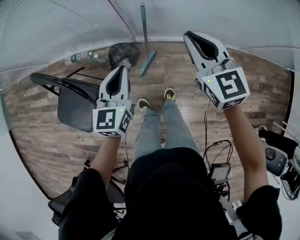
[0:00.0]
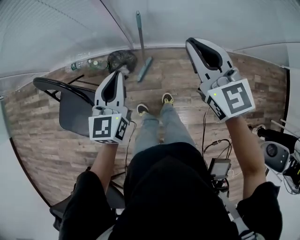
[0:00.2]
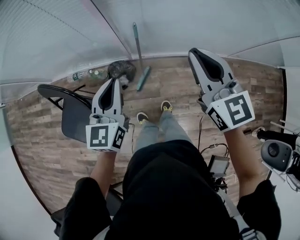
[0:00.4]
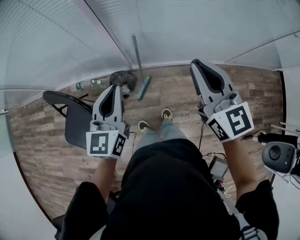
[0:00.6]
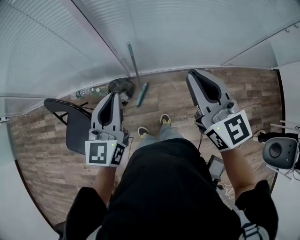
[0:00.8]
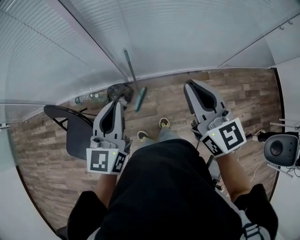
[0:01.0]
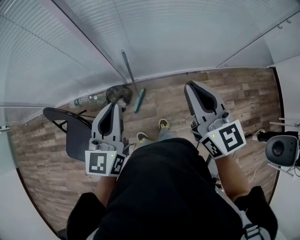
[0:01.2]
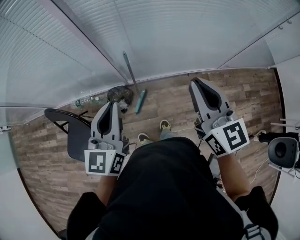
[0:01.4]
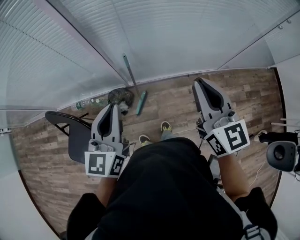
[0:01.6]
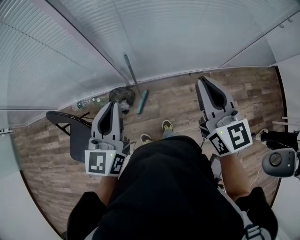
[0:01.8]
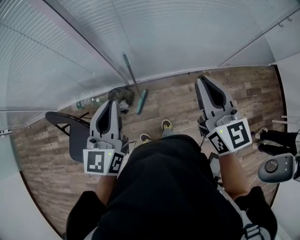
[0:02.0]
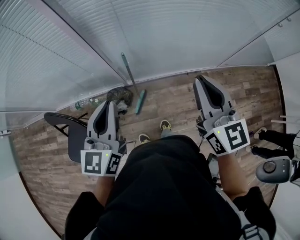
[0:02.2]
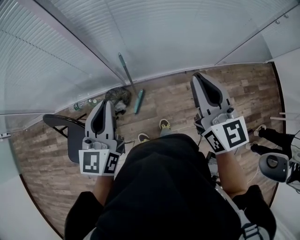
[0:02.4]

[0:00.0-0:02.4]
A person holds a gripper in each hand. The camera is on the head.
0:00.0 to 0:01.2: The left gripper travels upward by some 20 cm. Meanwhile the right gripper shifts approximately 25 cm upward, backward and to the right, and rotates roughly 20 degrees.
0:01.2 to 0:02.4: The grippers move only a little.

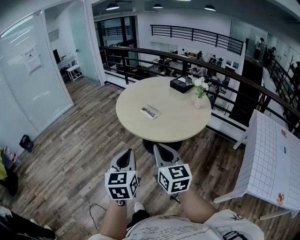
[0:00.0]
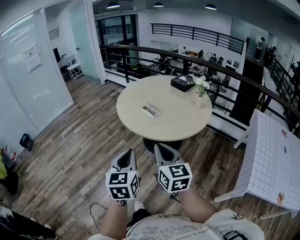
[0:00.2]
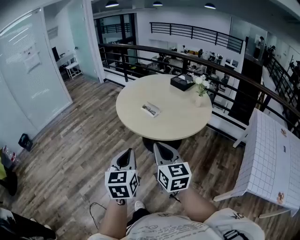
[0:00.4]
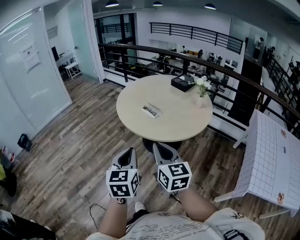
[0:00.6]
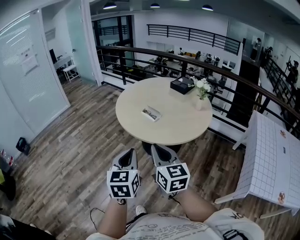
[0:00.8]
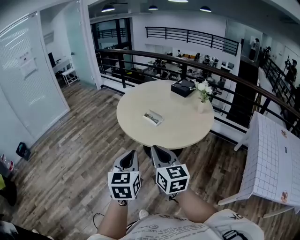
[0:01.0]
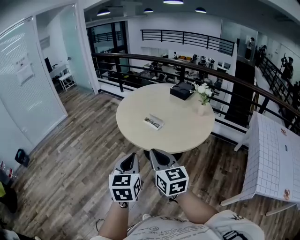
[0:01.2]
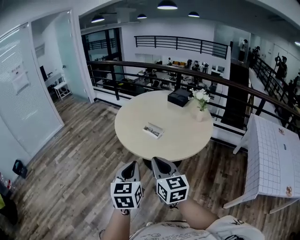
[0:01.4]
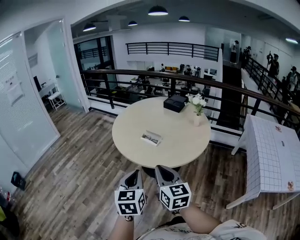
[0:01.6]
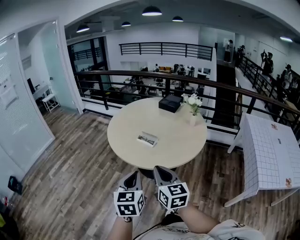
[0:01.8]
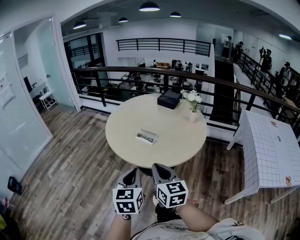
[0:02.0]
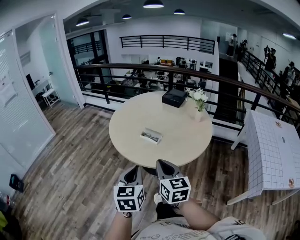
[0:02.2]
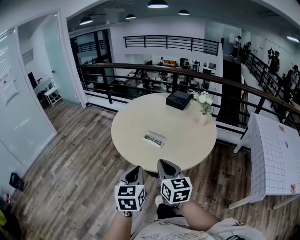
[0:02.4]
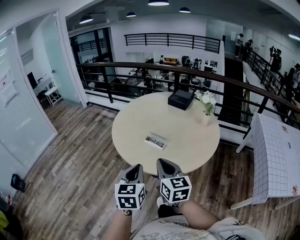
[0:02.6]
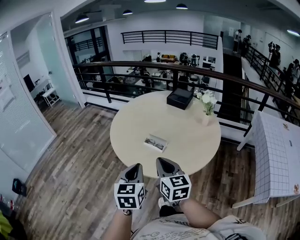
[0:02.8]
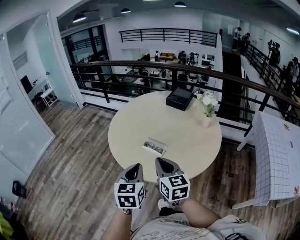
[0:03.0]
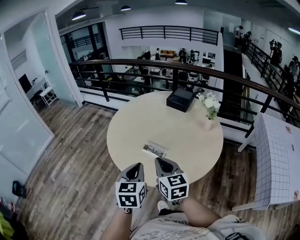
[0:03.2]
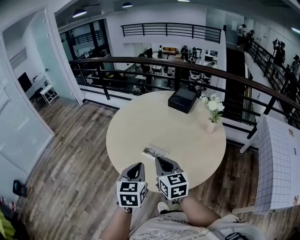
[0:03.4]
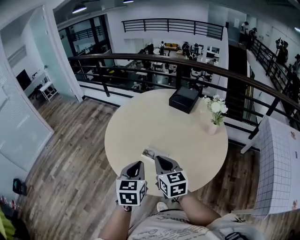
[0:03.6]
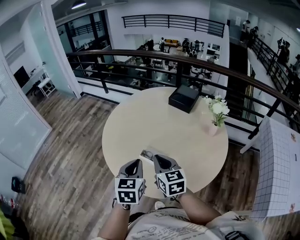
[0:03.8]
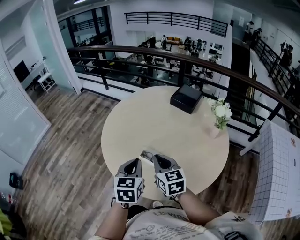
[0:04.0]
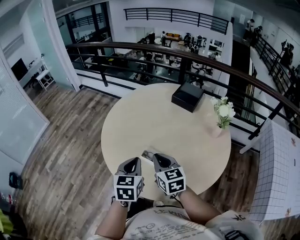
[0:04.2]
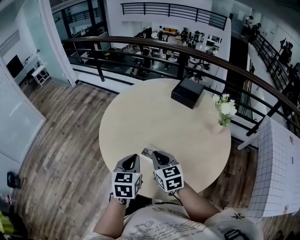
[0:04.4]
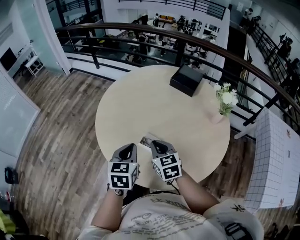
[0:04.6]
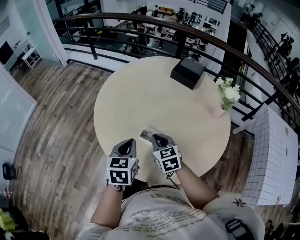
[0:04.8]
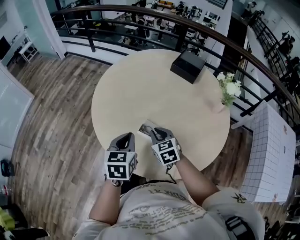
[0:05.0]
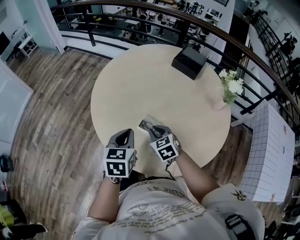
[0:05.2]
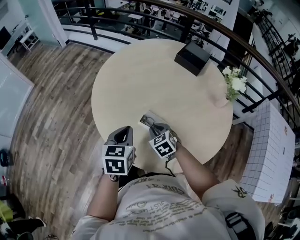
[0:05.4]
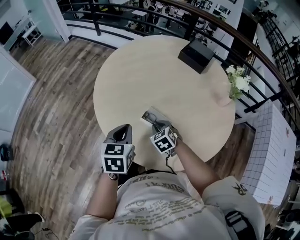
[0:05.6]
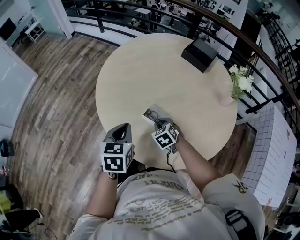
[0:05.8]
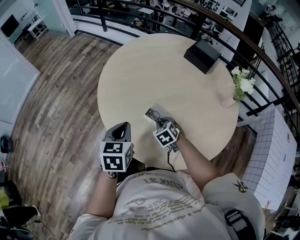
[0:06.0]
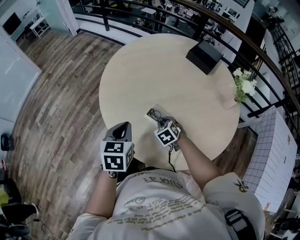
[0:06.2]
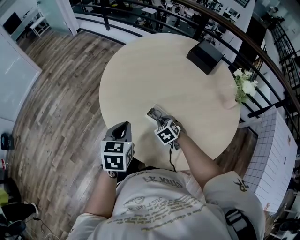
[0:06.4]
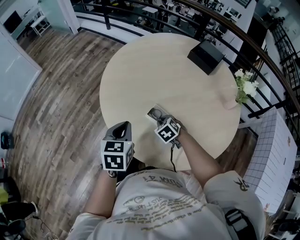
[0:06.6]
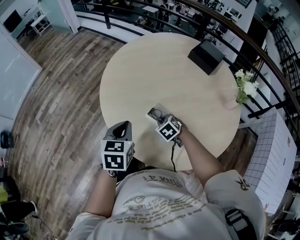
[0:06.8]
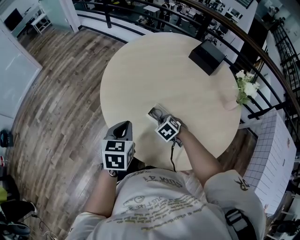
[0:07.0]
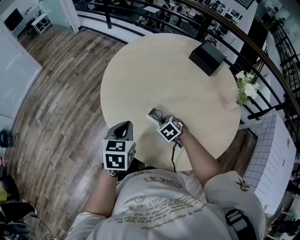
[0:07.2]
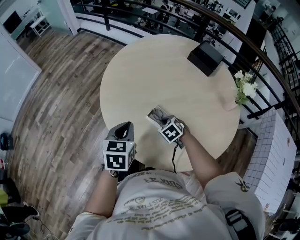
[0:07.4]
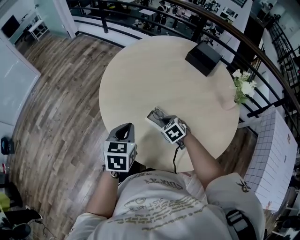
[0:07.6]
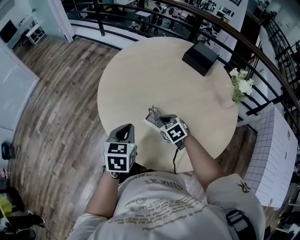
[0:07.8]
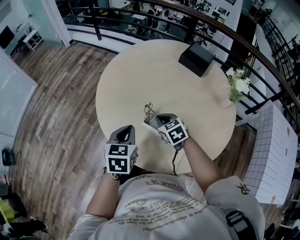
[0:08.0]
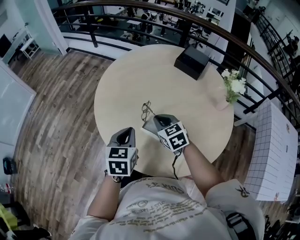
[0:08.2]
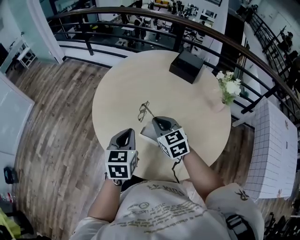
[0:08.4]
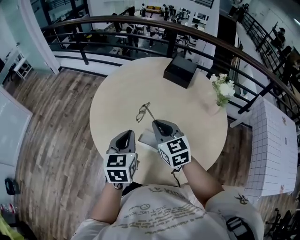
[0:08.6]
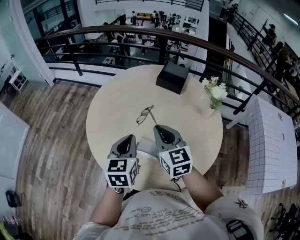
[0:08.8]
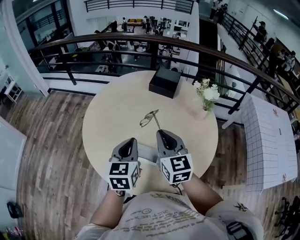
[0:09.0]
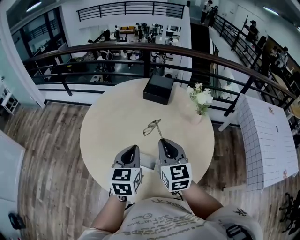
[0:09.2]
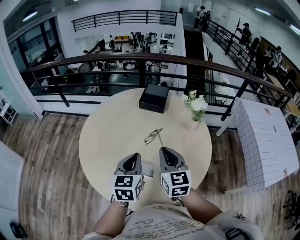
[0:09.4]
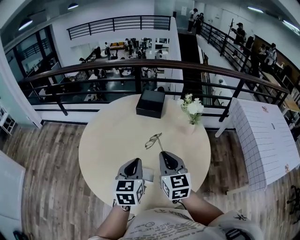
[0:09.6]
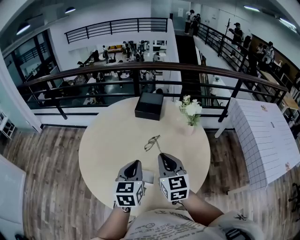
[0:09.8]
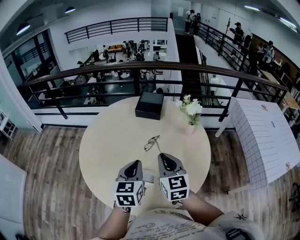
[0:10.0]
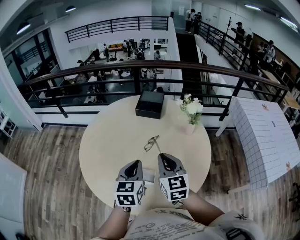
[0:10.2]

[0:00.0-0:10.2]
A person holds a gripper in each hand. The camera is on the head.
0:00.0 to 0:01.4: The left gripper moves forward, approximately 15 cm; the right gripper heads forward and to the left, covering some 15 cm.
0:01.4 to 0:03.0: Both grippers travel together forward, some 20 cm.
0:03.0 to 0:04.4: The right gripper is displaced forward and downward by approximately 25 cm; the left gripper goes about 20 cm forward.
0:04.4 to 0:05.8: The left gripper travels downward by roughly 5 cm; the right gripper moves downward, roughly 20 cm, and tips its fingers downward by roughly 30 degrees.
0:05.8 to 0:07.2: The grippers make only small movements.
0:07.2 to 0:08.8: The left gripper moves upward, to the right and forward, approximately 15 cm, and swivels approximately 20 degrees. The right gripper heads upward, covering roughly 30 cm, and tilts its fingers about 50 degrees upward.
0:08.8 to 0:10.2: The two grippers go some 10 cm to the right.

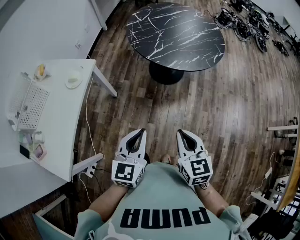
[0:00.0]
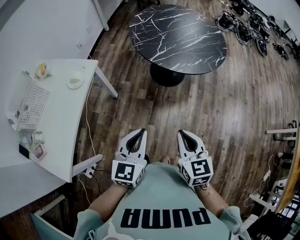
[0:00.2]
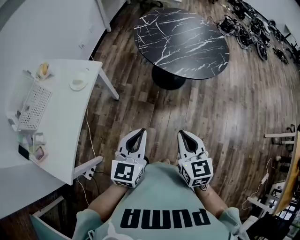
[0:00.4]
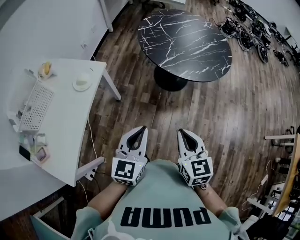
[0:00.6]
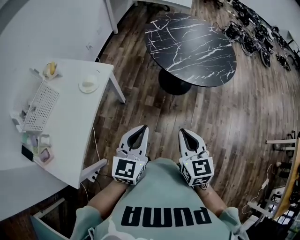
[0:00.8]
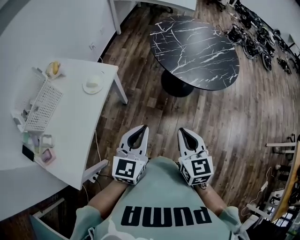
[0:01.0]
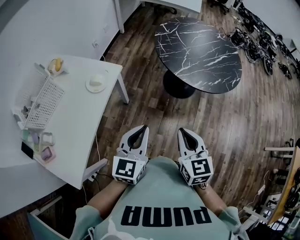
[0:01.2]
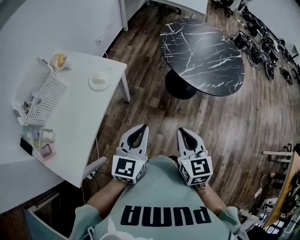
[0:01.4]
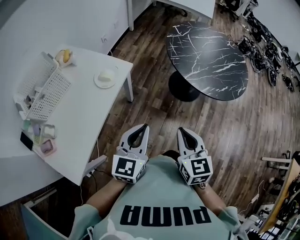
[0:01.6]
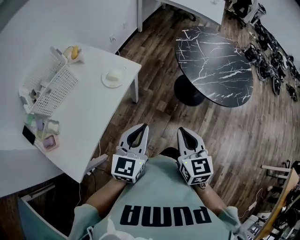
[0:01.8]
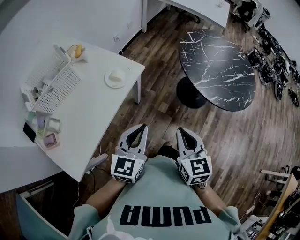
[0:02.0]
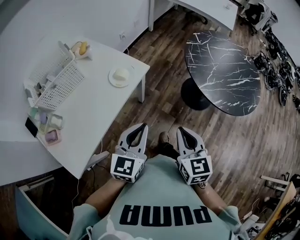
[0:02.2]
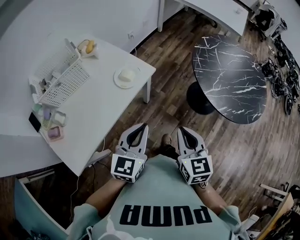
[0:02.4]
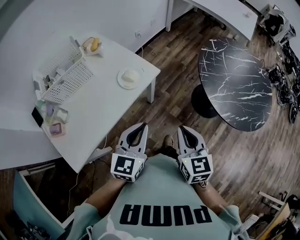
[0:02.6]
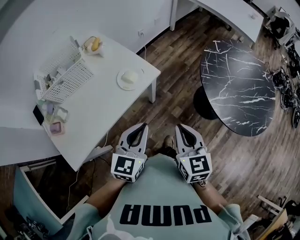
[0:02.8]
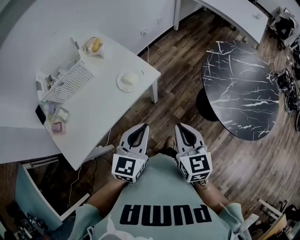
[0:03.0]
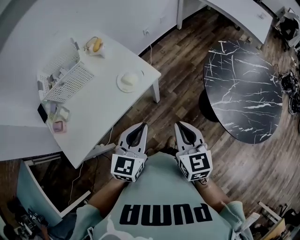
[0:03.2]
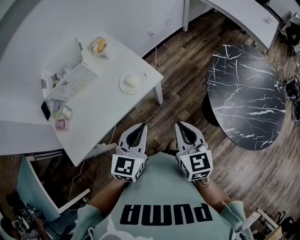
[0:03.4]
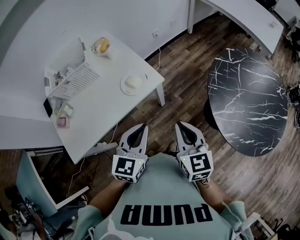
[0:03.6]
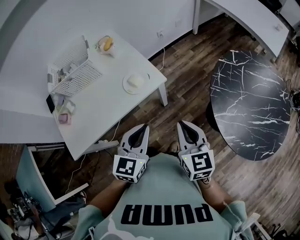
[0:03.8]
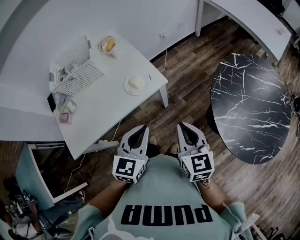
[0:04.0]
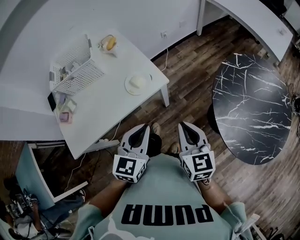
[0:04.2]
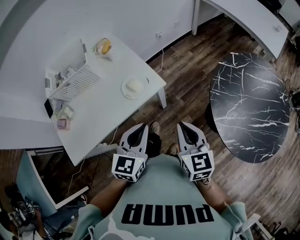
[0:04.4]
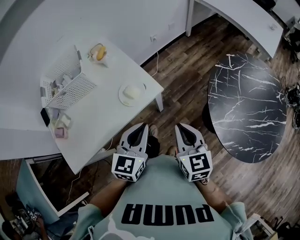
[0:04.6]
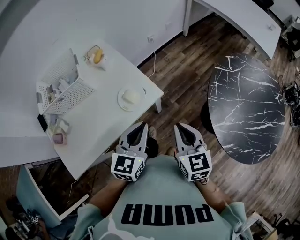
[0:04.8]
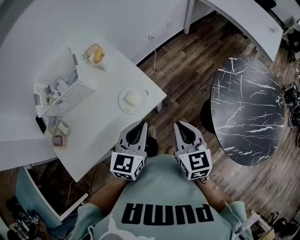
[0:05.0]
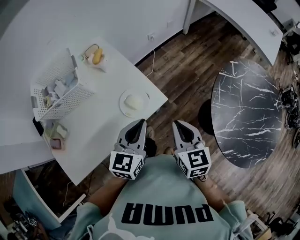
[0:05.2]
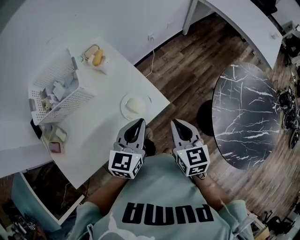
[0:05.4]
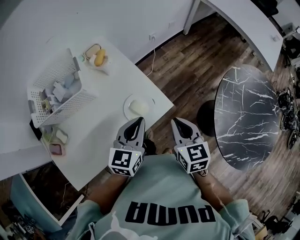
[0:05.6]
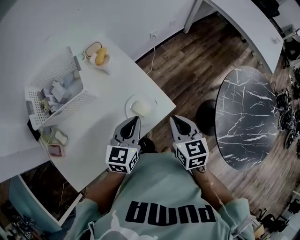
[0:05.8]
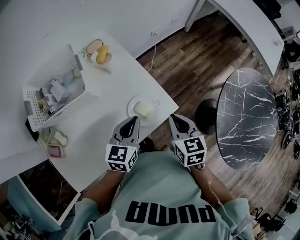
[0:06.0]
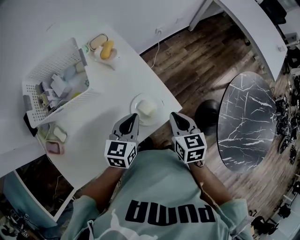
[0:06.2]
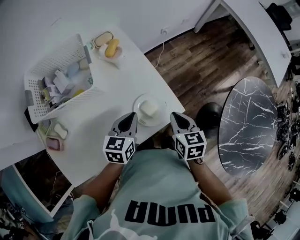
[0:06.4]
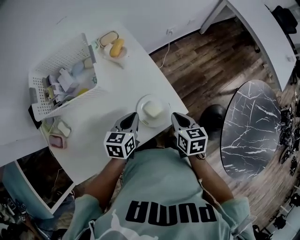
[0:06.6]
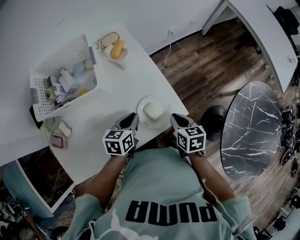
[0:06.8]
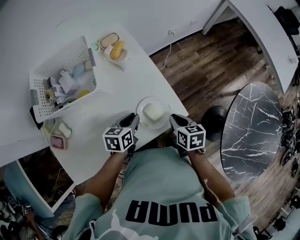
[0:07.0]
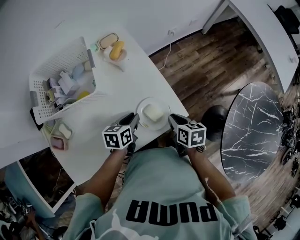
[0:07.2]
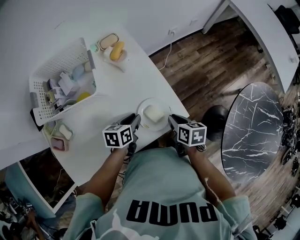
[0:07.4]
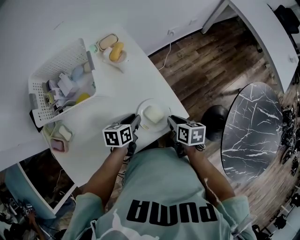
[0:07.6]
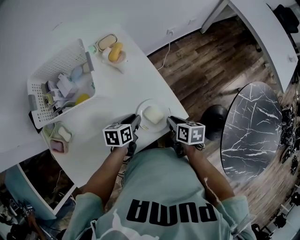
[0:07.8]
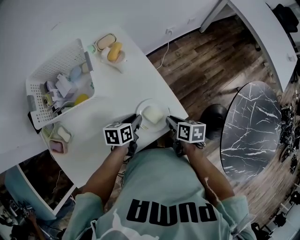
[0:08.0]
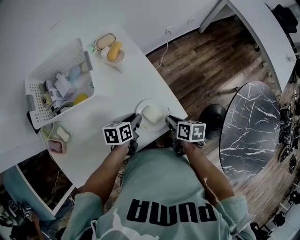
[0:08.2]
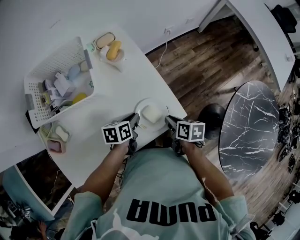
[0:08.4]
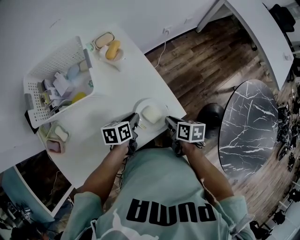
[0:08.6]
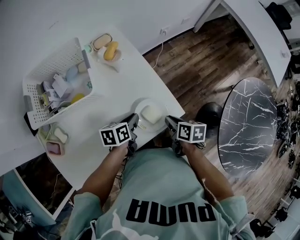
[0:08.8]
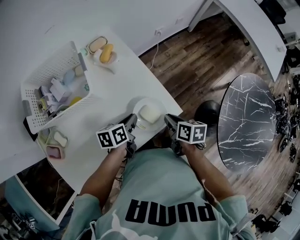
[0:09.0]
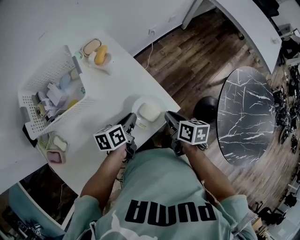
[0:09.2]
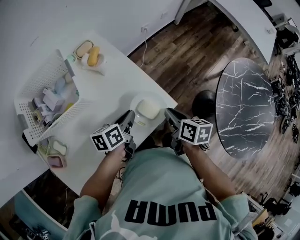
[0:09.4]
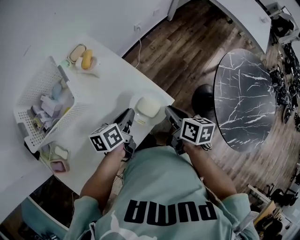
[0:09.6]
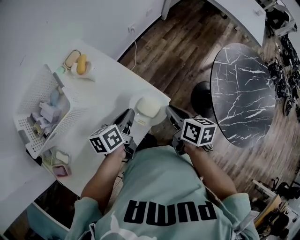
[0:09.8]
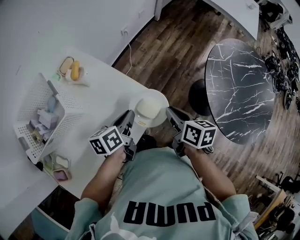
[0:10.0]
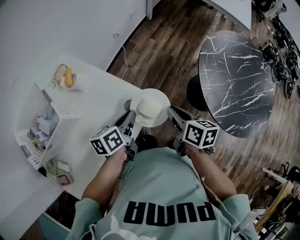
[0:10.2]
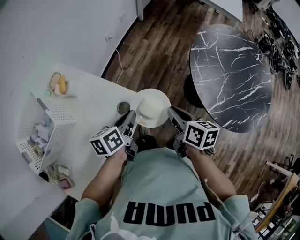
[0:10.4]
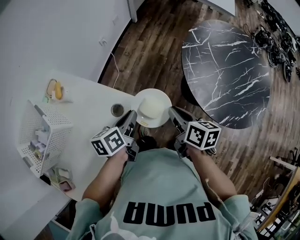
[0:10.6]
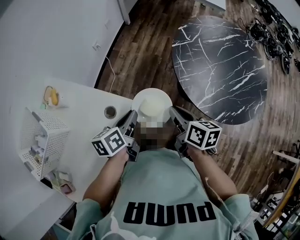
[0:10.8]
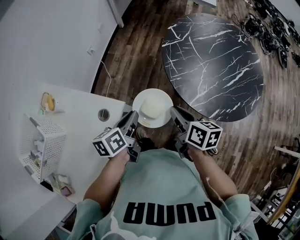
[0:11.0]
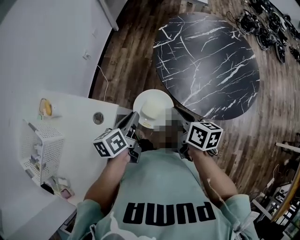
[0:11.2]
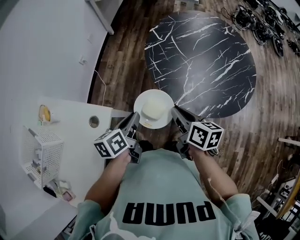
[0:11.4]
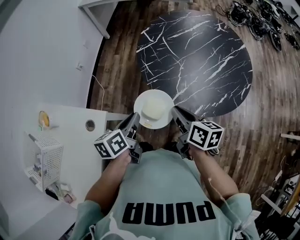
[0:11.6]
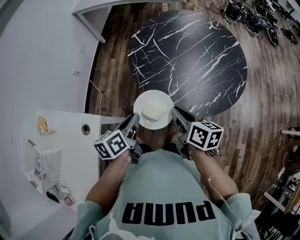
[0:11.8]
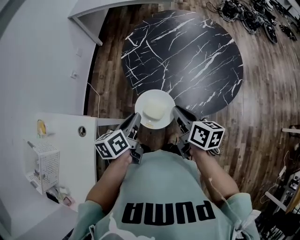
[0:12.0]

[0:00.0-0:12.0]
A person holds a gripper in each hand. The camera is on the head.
0:00.0 to 0:01.6: The grippers both shift to the left and forward by some 20 cm.
0:01.6 to 0:03.0: The left gripper goes approximately 10 cm forward, and turns by about 20 degrees. The right gripper is displaced forward by roughly 15 cm, and turns by approximately 20 degrees.
0:03.0 to 0:04.4: The grippers both shift forward by roughly 5 cm.
0:04.4 to 0:06.0: The grippers both shift forward and to the left by about 25 cm.
0:06.0 to 0:07.6: The grippers both shift downward by approximately 15 cm. The right gripper turns by about 30 degrees; the left gripper rotates roughly 30 degrees.
0:07.6 to 0:09.0: The grippers stay close to where they were, moving slightly.
0:09.0 to 0:10.4: Both grippers travel together to the right and upward, some 15 cm. The right gripper rotates some 30 degrees, while the left gripper turns by about 20 degrees.
0:10.4 to 0:12.0: Both grippers travel together to the right, approximately 35 cm. The right gripper rotates some 20 degrees.
